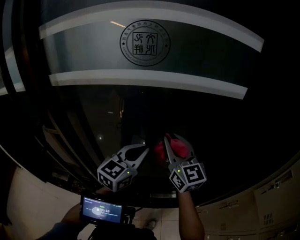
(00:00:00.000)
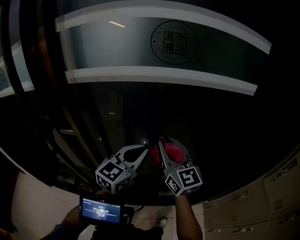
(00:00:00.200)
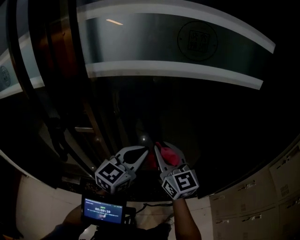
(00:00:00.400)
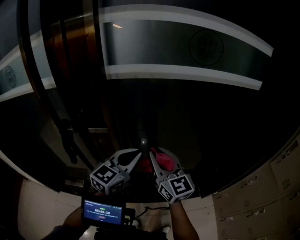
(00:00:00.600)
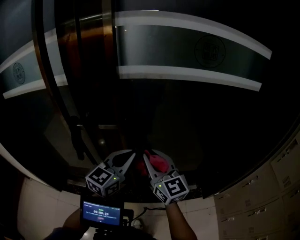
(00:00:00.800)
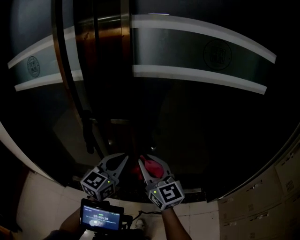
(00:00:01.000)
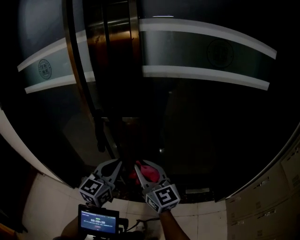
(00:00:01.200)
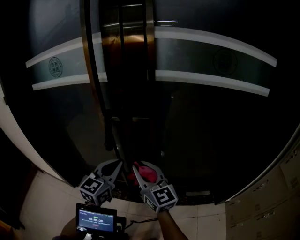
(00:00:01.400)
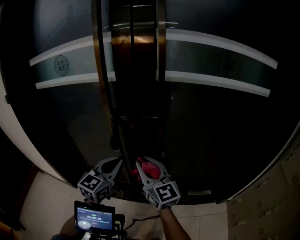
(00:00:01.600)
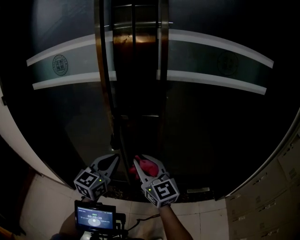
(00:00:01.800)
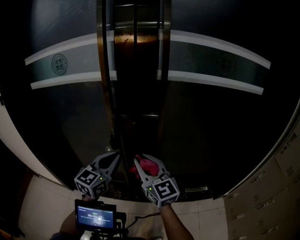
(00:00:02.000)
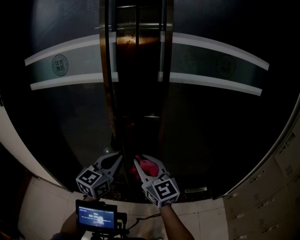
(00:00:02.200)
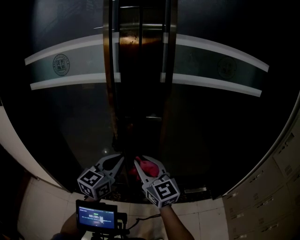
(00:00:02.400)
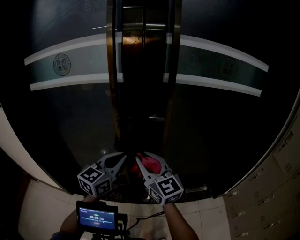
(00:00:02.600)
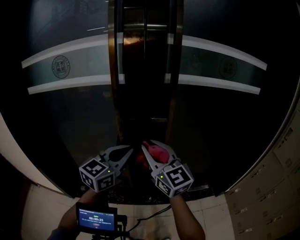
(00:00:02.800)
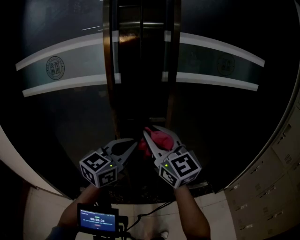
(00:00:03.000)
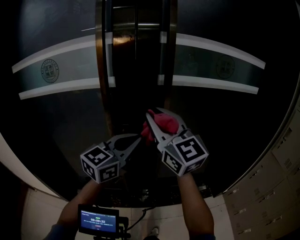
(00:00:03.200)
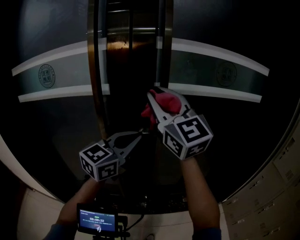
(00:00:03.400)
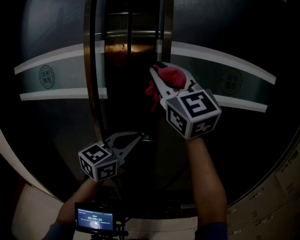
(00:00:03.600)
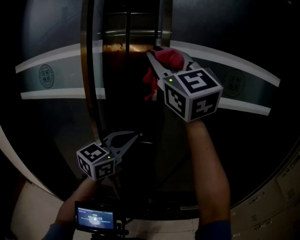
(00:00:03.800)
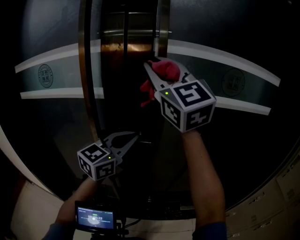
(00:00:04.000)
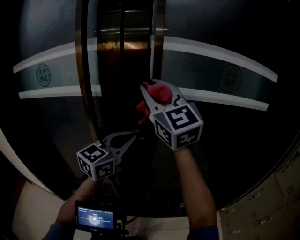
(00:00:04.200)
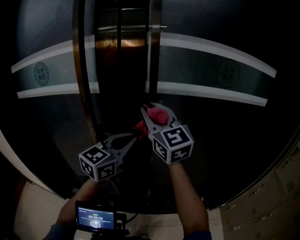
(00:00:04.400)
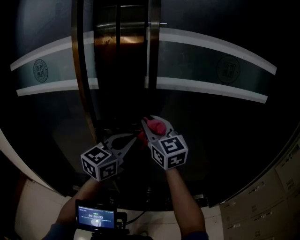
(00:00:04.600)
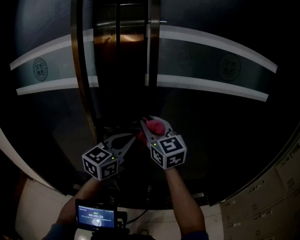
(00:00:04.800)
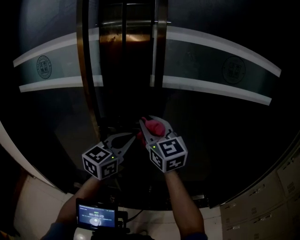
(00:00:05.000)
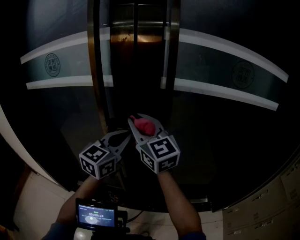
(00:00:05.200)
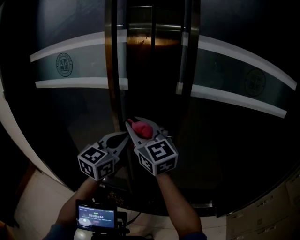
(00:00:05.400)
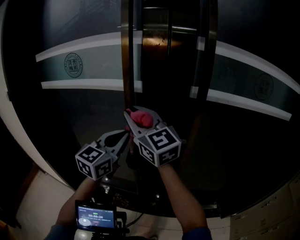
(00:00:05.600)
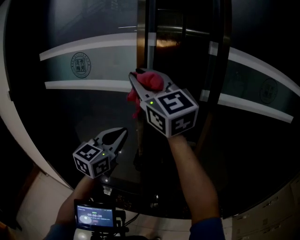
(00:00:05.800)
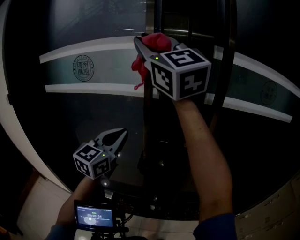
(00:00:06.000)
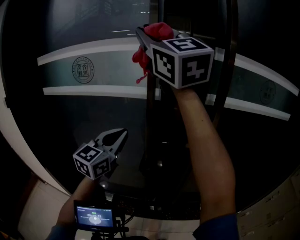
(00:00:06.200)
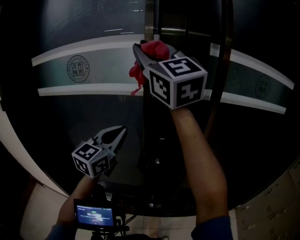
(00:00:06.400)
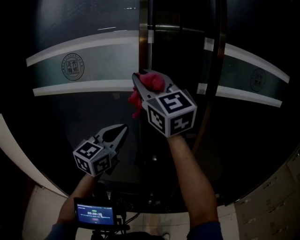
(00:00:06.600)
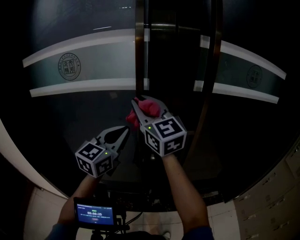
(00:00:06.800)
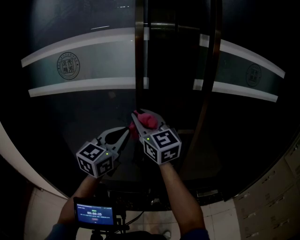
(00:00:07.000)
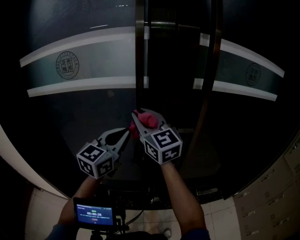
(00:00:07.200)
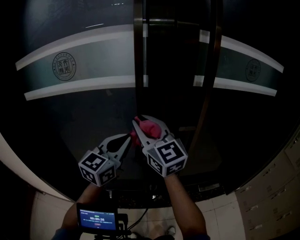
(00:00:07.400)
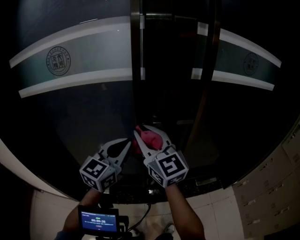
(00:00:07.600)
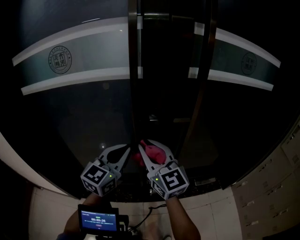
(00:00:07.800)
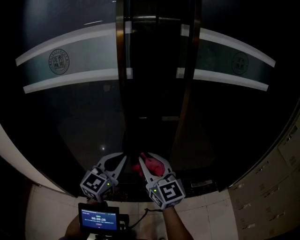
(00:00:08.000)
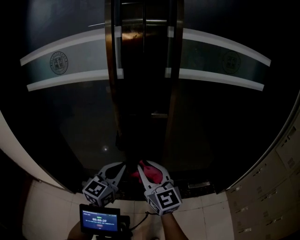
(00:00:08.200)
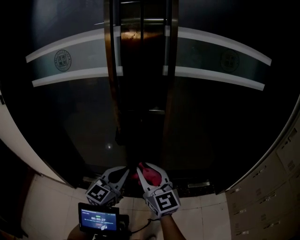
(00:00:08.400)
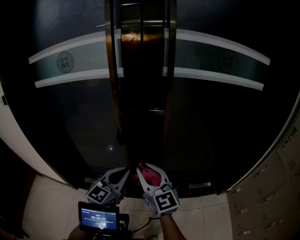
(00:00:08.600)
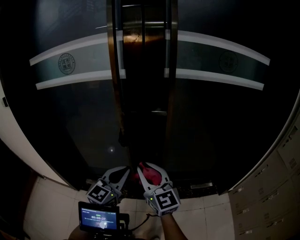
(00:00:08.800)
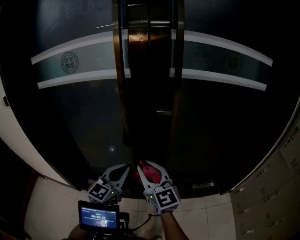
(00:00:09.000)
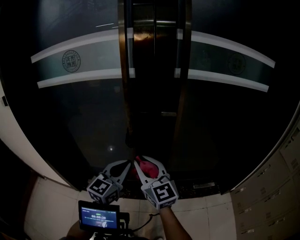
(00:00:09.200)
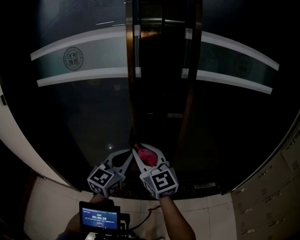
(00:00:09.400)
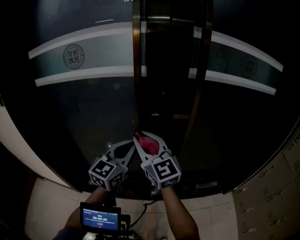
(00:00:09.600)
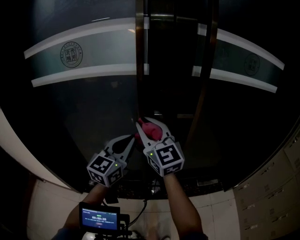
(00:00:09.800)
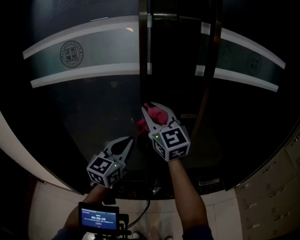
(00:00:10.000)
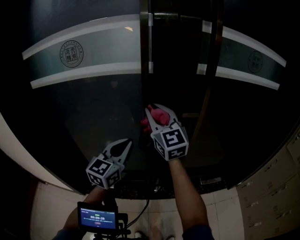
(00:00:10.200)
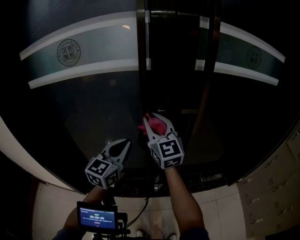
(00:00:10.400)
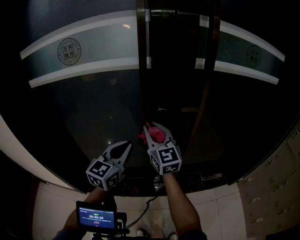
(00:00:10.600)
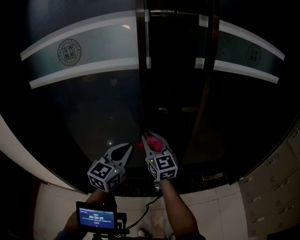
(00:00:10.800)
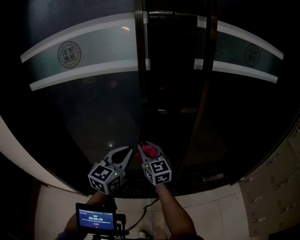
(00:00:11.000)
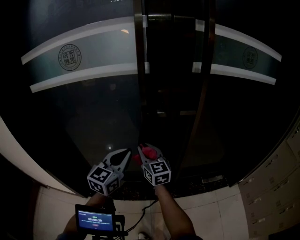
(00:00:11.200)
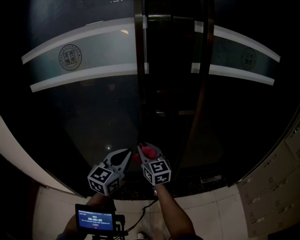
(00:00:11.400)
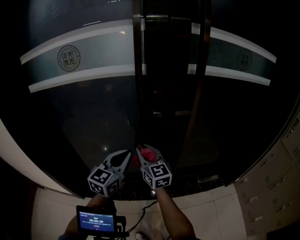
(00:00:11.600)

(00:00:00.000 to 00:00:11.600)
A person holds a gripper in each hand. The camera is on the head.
00:00:00.000 - 00:00:01.400: The two grippers travel together, to the left and backward, approximately 50 cm.
00:00:01.400 - 00:00:02.800: The right gripper moves upward and to the left, roughly 15 cm. Meanwhile the left gripper moves to the left and upward, roughly 10 cm.
00:00:02.800 - 00:00:04.400: Both grippers travel together forward and to the right, about 20 cm. The right gripper travels upward and back again, roughly 30 cm each way.
00:00:04.400 - 00:00:05.800: The right gripper goes some 25 cm to the left and upward, while the left gripper moves to the left, some 25 cm.
00:00:05.800 - 00:00:07.200: The right gripper moves downward, roughly 15 cm.
00:00:07.200 - 00:00:08.800: The two grippers go some 30 cm backward, to the right and downward.
00:00:08.800 - 00:00:10.200: The left gripper shifts about 20 cm forward and to the left. The right gripper heads forward, to the left and upward, covering some 30 cm.
00:00:10.200 - 00:00:11.600: The left gripper shifts by some 5 cm. Meanwhile the right gripper travels downward by approximately 15 cm.

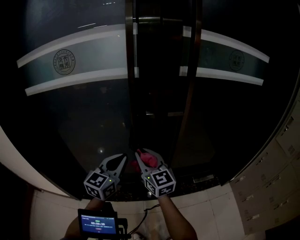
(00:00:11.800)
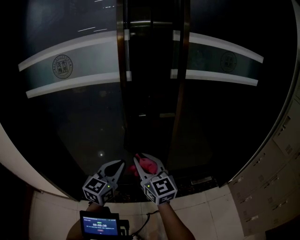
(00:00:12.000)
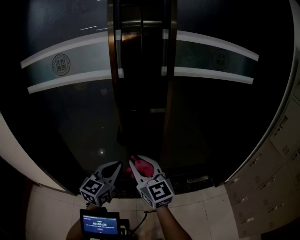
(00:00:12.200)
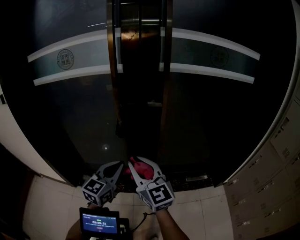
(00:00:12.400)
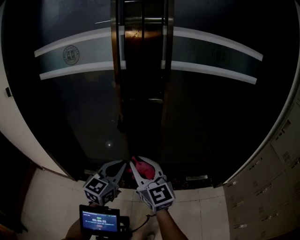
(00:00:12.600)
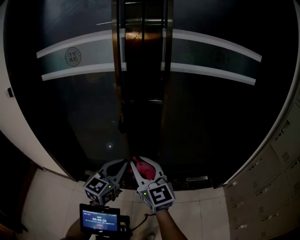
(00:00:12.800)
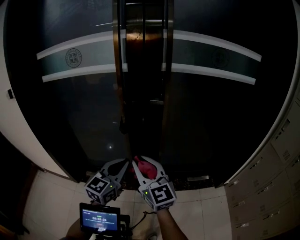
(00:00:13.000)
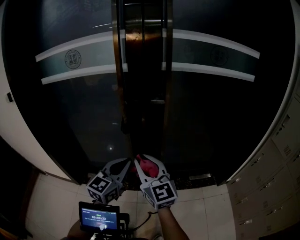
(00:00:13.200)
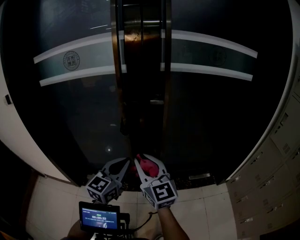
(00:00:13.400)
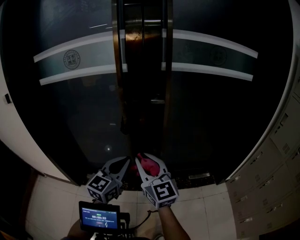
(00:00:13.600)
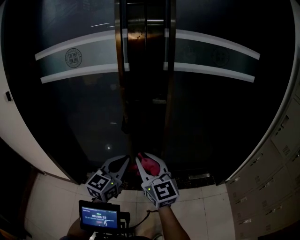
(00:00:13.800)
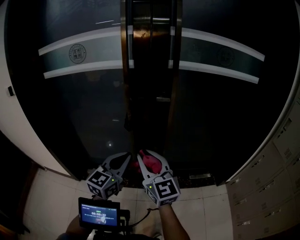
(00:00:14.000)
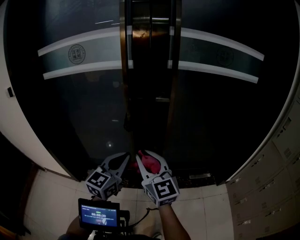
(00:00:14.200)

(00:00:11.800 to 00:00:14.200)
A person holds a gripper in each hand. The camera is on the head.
00:00:11.800 - 00:00:13.000: Both grippers move backward and to the right, approximately 20 cm.
00:00:13.000 - 00:00:14.200: The grippers make only small movements.

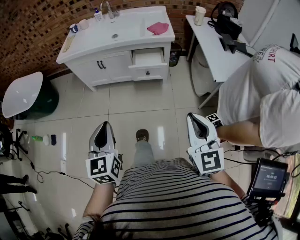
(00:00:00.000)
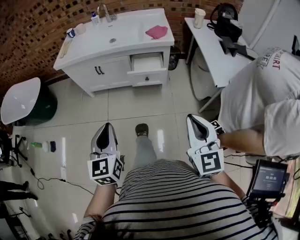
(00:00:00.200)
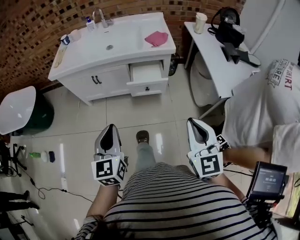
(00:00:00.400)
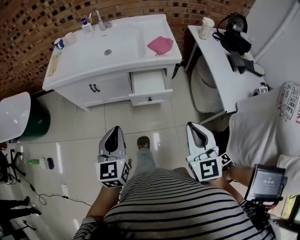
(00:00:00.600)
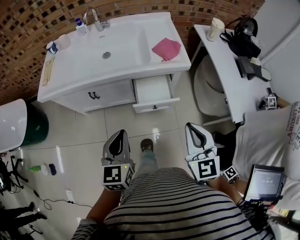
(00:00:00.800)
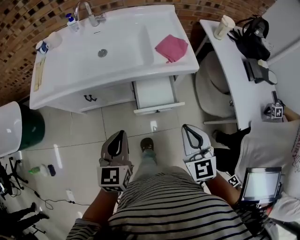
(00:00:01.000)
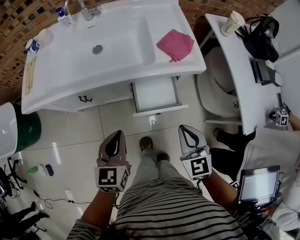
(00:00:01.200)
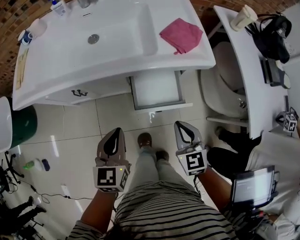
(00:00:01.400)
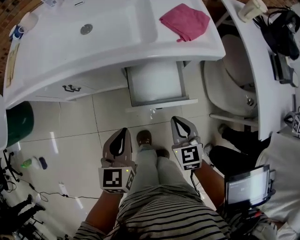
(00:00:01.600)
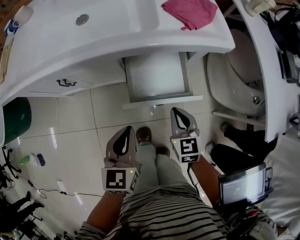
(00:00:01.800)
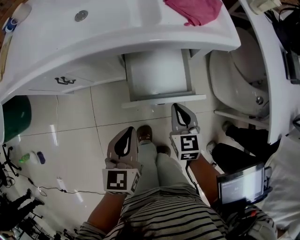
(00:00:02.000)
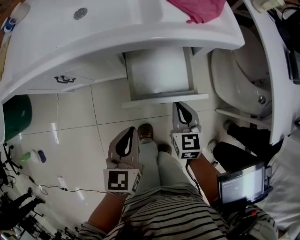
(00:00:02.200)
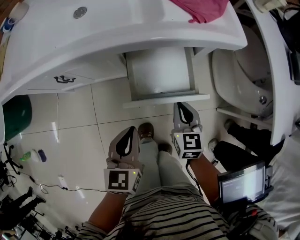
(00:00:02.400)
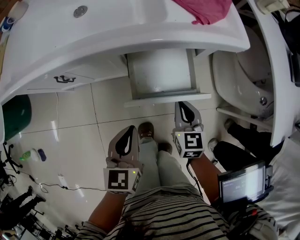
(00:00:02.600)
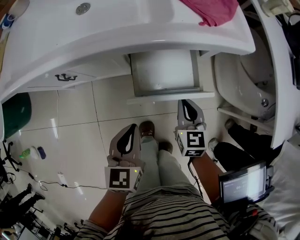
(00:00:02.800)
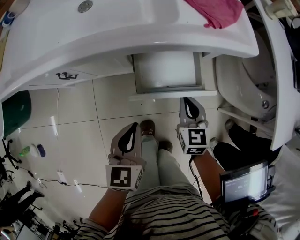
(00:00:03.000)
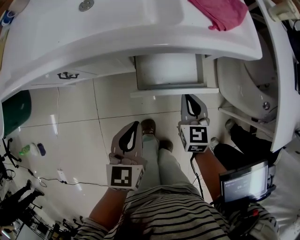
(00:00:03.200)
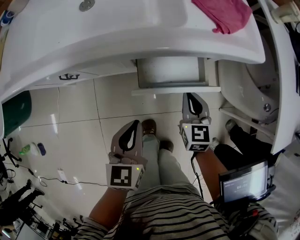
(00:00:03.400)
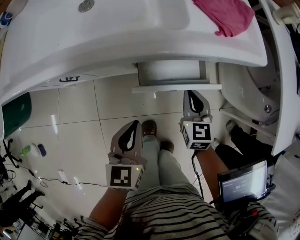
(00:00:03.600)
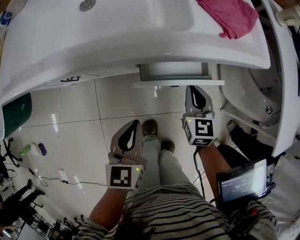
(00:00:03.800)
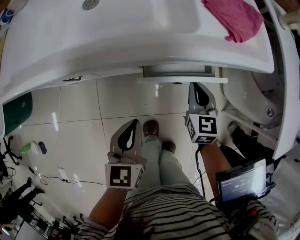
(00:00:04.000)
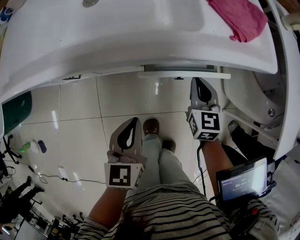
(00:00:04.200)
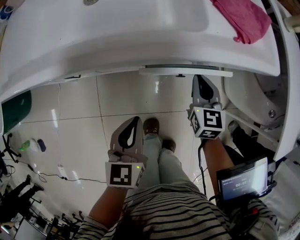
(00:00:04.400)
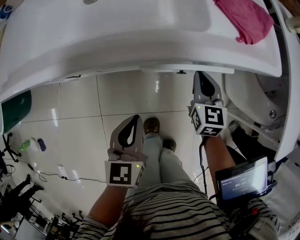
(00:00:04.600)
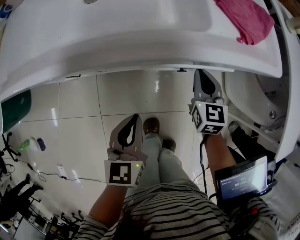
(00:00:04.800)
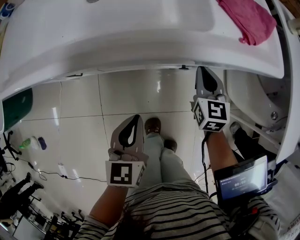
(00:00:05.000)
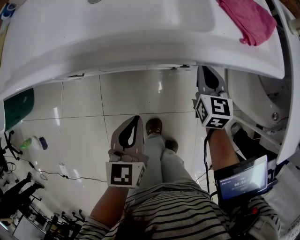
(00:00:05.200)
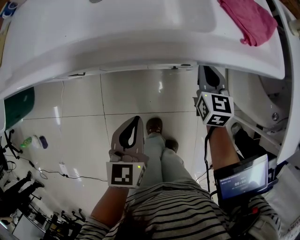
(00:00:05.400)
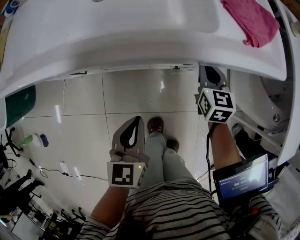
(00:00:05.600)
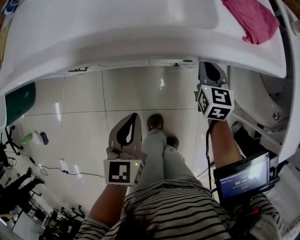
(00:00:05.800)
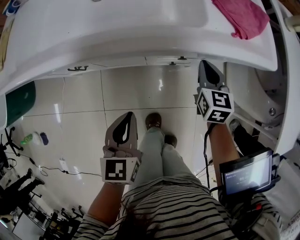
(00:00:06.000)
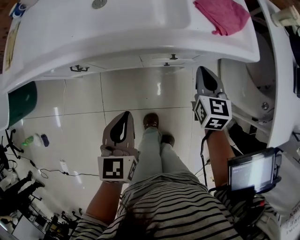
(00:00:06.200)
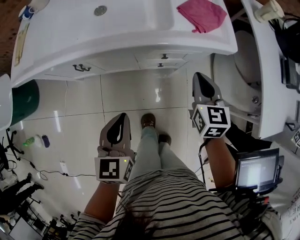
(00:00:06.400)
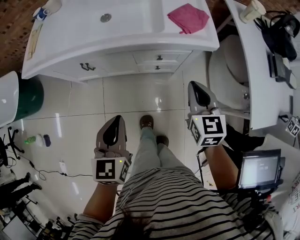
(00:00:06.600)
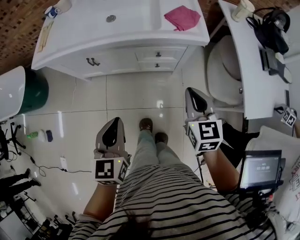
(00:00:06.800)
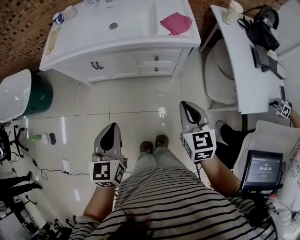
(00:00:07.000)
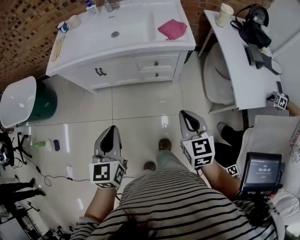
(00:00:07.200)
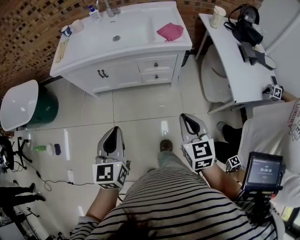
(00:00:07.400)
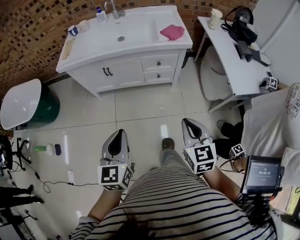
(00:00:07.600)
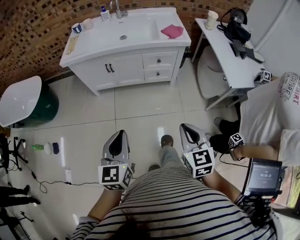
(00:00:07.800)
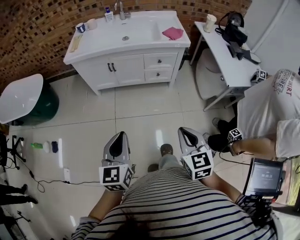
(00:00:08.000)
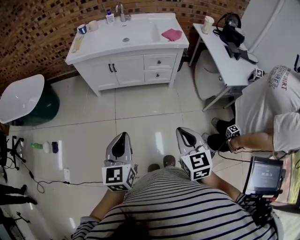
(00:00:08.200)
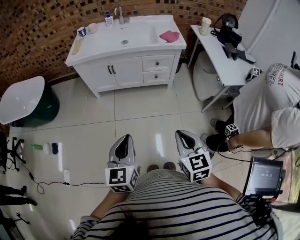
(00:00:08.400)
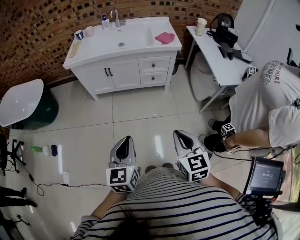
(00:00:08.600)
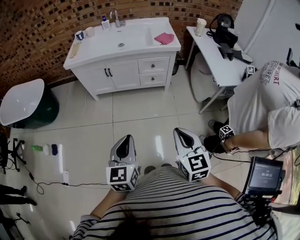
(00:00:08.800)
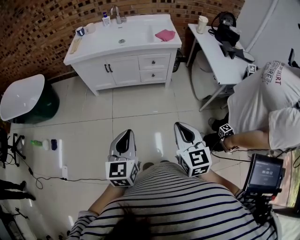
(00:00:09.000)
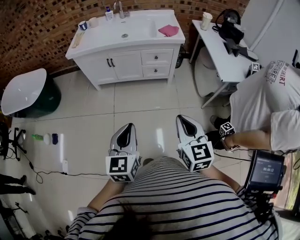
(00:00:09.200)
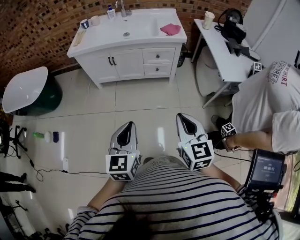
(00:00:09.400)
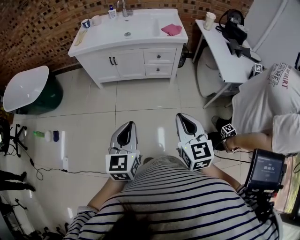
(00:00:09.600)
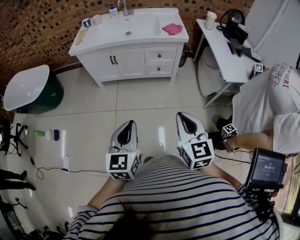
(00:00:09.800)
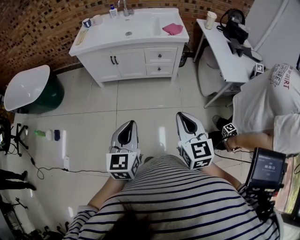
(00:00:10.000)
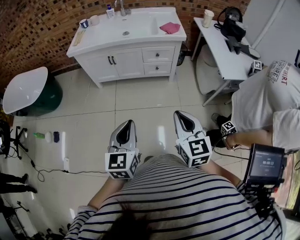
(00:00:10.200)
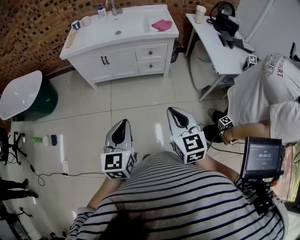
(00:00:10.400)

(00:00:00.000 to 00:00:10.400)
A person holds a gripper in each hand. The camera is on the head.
00:00:00.000 - 00:00:01.400: The pair of grippers is taken forward, some 40 cm. Both grippers move downward, about 25 cm. The right gripper rotates some 20 degrees. Meanwhile the left gripper swivels roughly 20 degrees.
00:00:01.400 - 00:00:03.000: The left gripper moves downward, about 15 cm, while the right gripper goes approximately 15 cm downward and forward.
00:00:03.000 - 00:00:04.400: The left gripper ends up some 5 cm from where it was. The right gripper moves forward, approximately 10 cm.
00:00:04.400 - 00:00:06.000: The grippers stay close to where they were, moving slightly.
00:00:06.000 - 00:00:07.400: Both grippers move backward and upward, about 50 cm.
00:00:07.400 - 00:00:09.000: Both grippers travel together backward, approximately 25 cm.
00:00:09.000 - 00:00:10.400: The grippers stay close to where they were, moving slightly.
